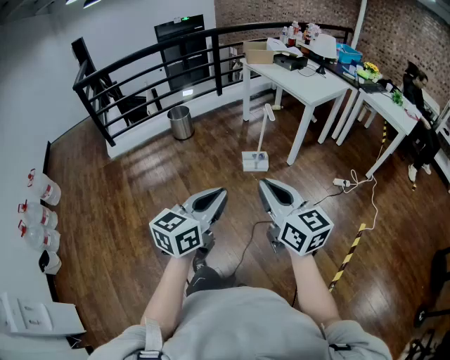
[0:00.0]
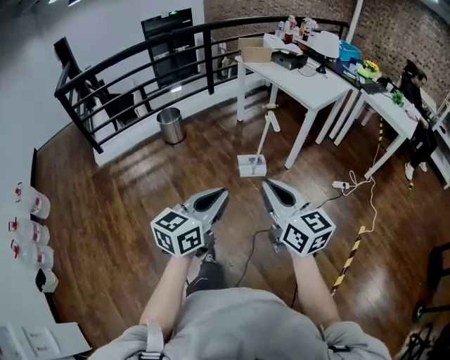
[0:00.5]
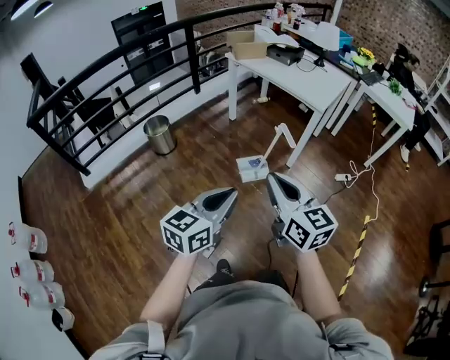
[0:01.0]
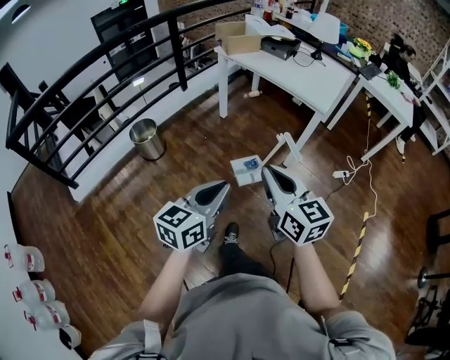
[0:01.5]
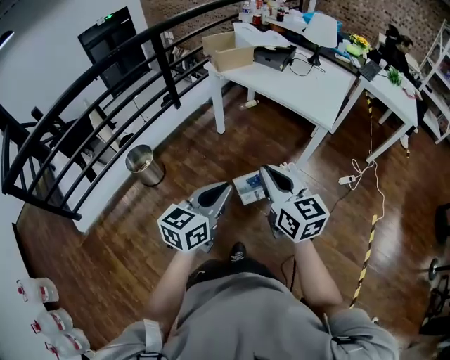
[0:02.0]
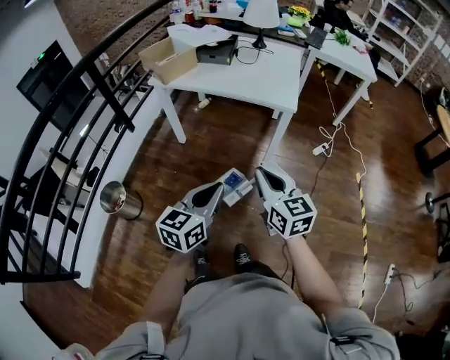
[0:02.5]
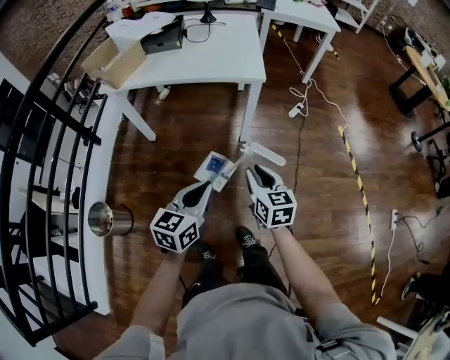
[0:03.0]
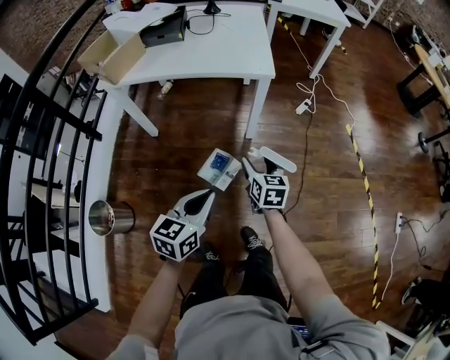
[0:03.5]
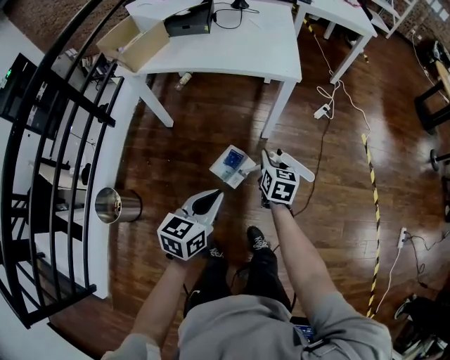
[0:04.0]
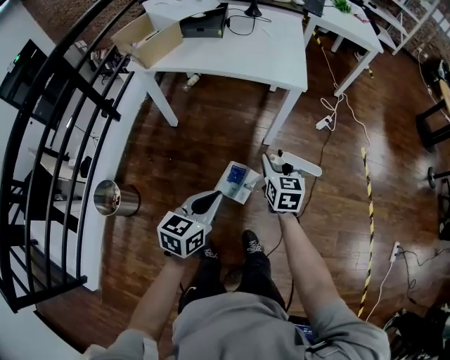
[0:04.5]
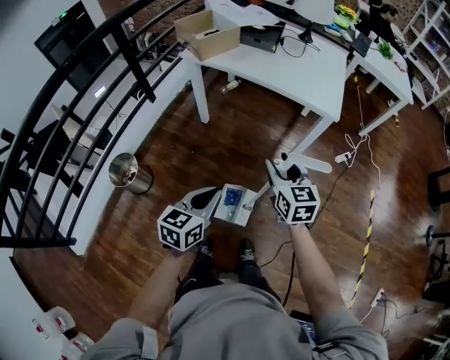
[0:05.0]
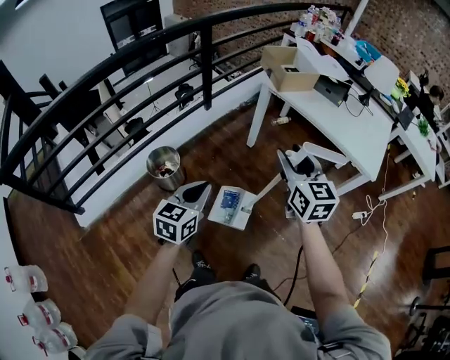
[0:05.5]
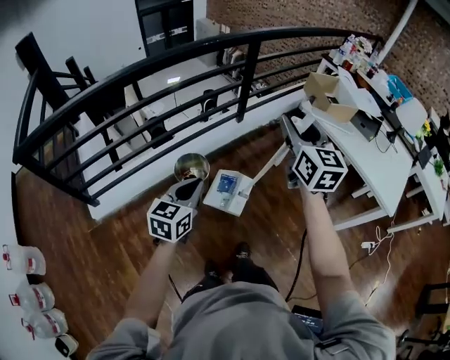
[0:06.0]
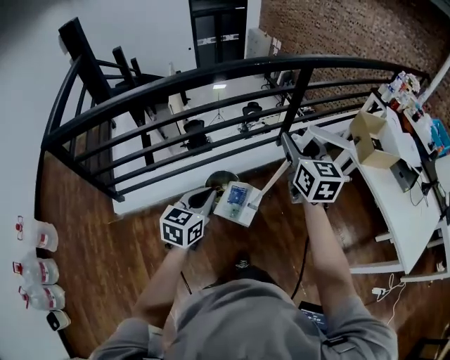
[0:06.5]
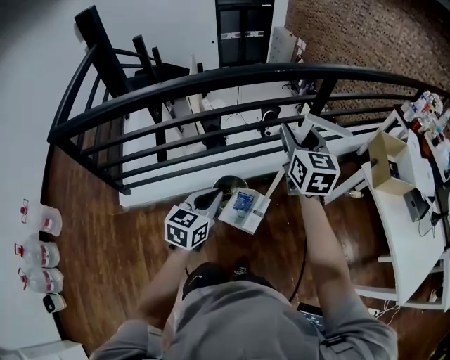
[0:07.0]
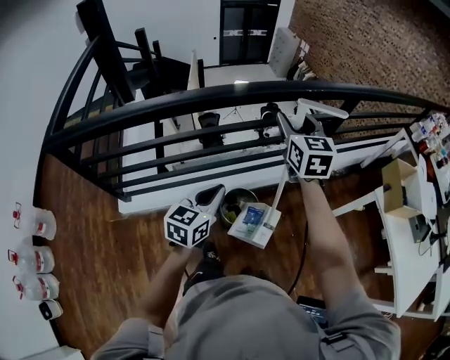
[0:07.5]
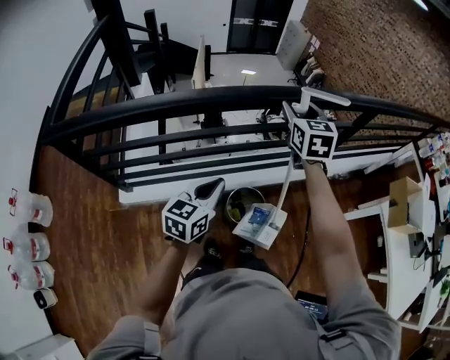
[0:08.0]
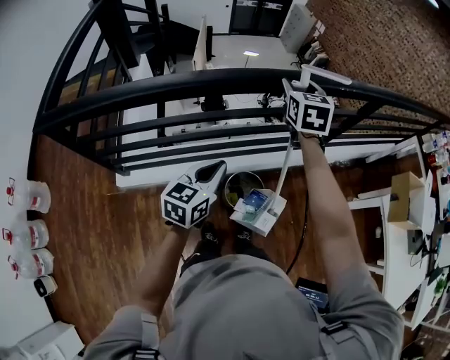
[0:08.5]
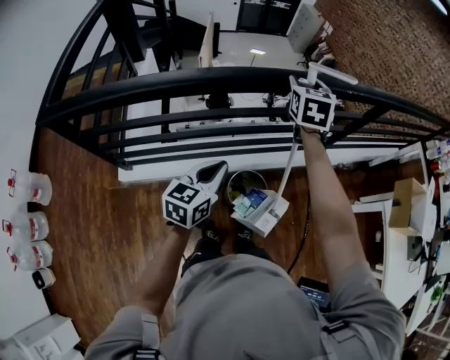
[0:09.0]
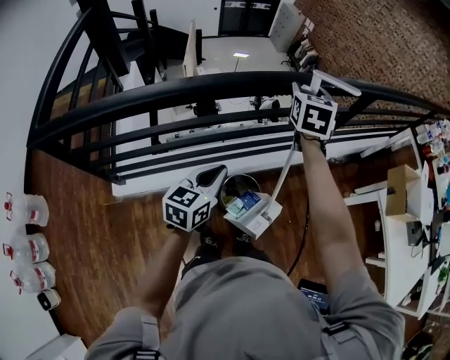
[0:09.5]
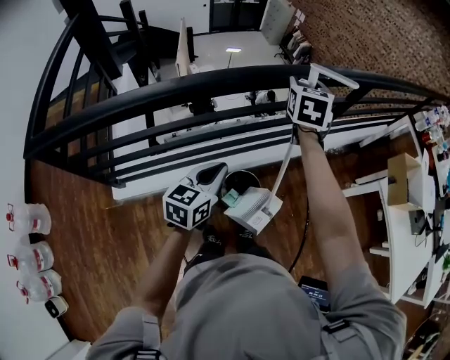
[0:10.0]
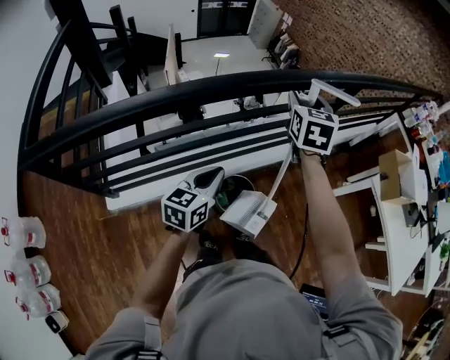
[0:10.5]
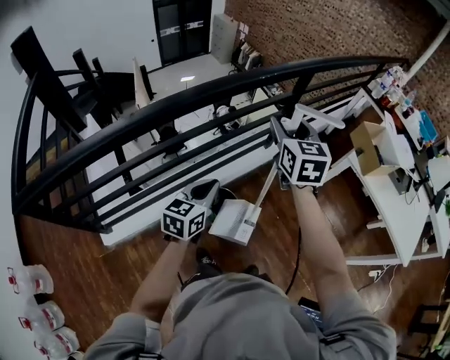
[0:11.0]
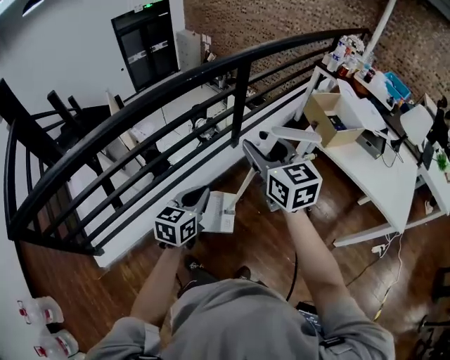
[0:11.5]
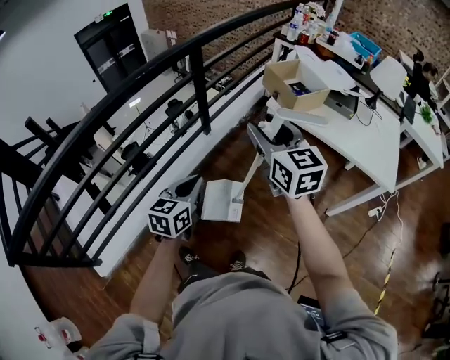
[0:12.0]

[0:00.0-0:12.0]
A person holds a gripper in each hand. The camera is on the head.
0:00.0 to 0:02.0: The pair of grippers is taken forward, roughly 60 cm. The right gripper changes its angle by about 30 degrees, while the left gripper rotates approximately 20 degrees.
0:02.0 to 0:04.0: The left gripper shifts roughly 15 cm downward, and changes its angle by roughly 30 degrees. The right gripper moves downward, approximately 30 cm, turns by about 60 degrees, and opens.
0:04.0 to 0:06.0: The pair of grippers is taken approximately 60 cm. The left gripper turns by approximately 50 degrees. Meanwhile the right gripper tilts its fingers about 30 degrees upward.
0:06.0 to 0:08.0: The left gripper travels to the left and forward by some 35 cm; the right gripper shifts some 60 cm to the left and forward, and changes its angle by about 30 degrees.
0:08.0 to 0:10.0: The left gripper changes place by roughly 5 cm, while the right gripper shifts about 10 cm forward and to the right, and rotates roughly 20 degrees.
0:10.0 to 0:12.0: The left gripper goes approximately 40 cm to the right, and rotates roughly 30 degrees. The right gripper goes about 50 cm to the right and backward, and changes its angle by approximately 20 degrees.

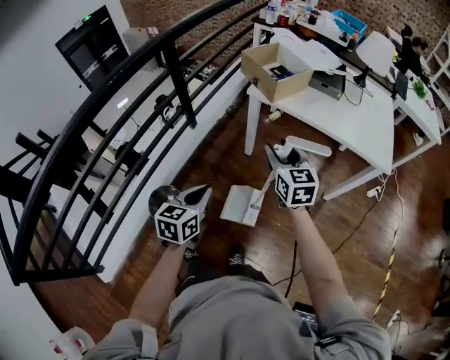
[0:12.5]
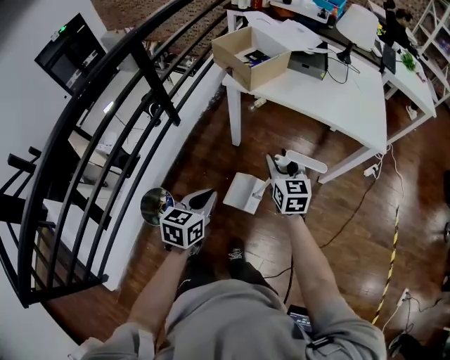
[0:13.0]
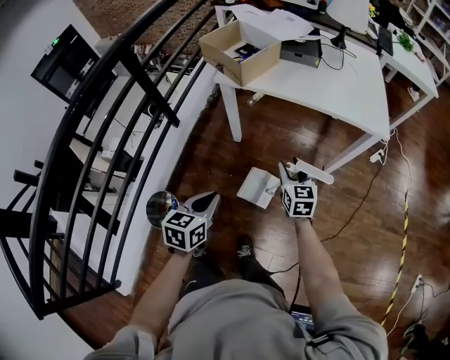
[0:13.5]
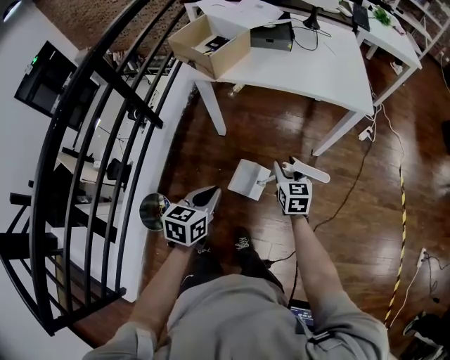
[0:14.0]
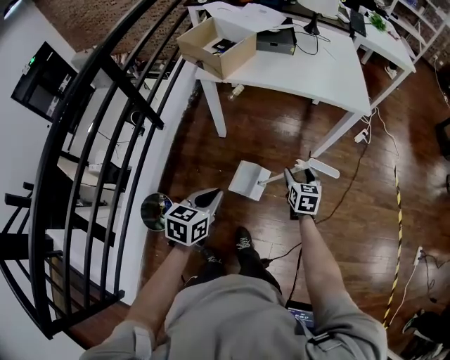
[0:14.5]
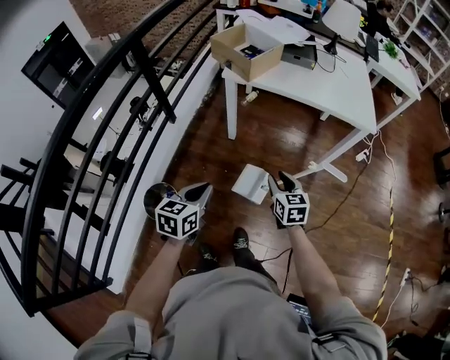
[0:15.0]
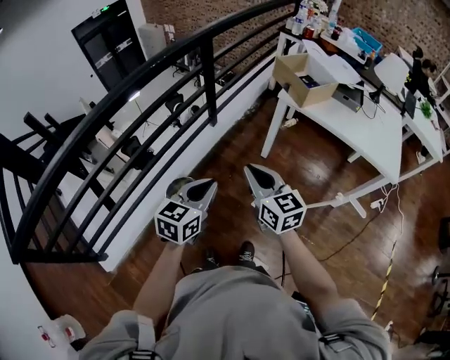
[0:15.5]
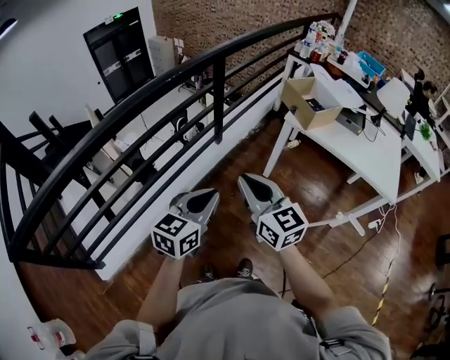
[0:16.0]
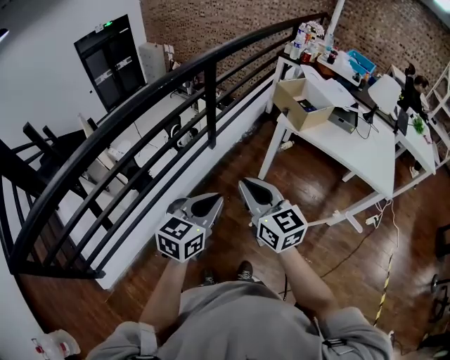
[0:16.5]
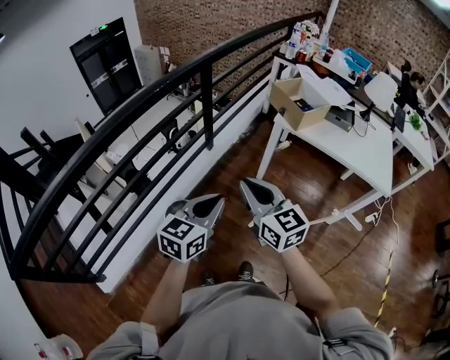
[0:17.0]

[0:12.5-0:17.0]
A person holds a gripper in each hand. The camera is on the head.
0:12.5 to 0:14.5: The left gripper changes place by roughly 15 cm, and changes its angle by some 20 degrees. Meanwhile the right gripper moves about 30 cm, and changes its angle by about 40 degrees.
0:14.5 to 0:17.0: The left gripper moves about 25 cm, and rotates approximately 30 degrees, while the right gripper moves about 50 cm, rotates approximately 60 degrees, and closes its fingers.

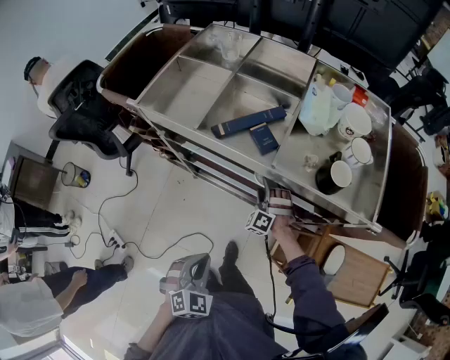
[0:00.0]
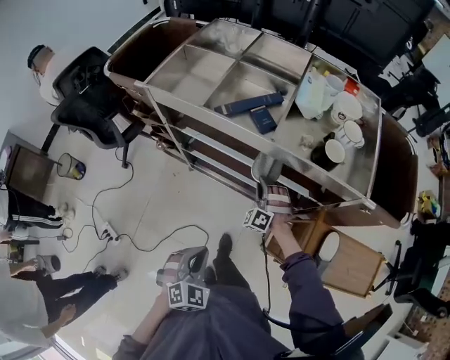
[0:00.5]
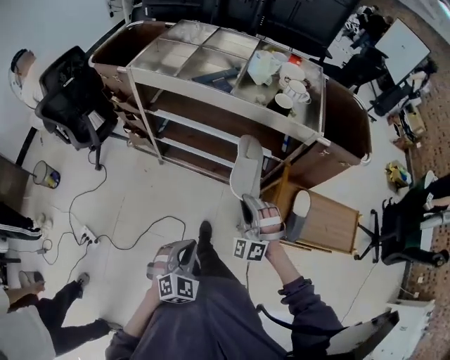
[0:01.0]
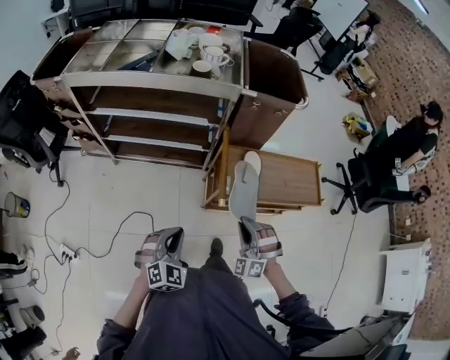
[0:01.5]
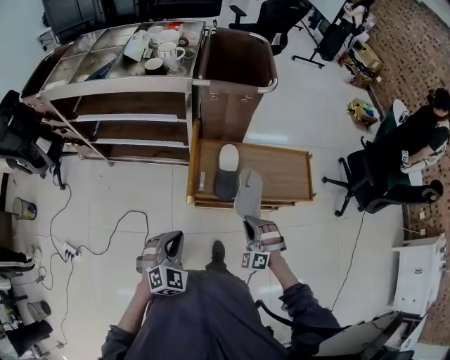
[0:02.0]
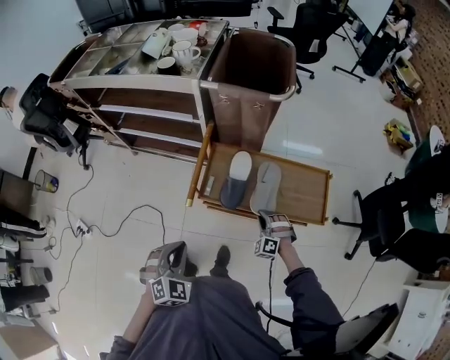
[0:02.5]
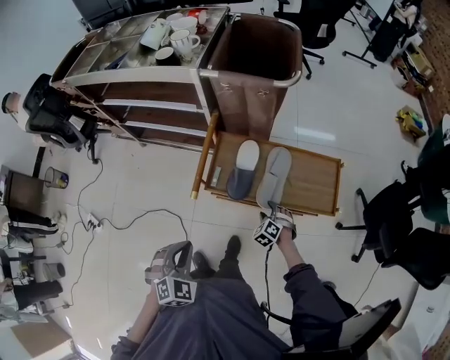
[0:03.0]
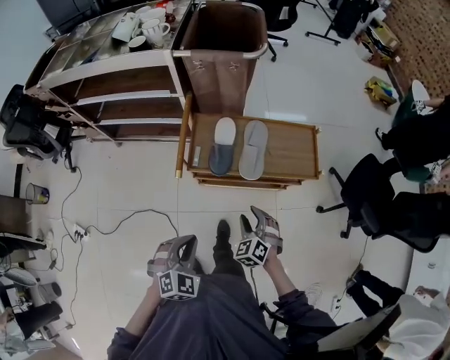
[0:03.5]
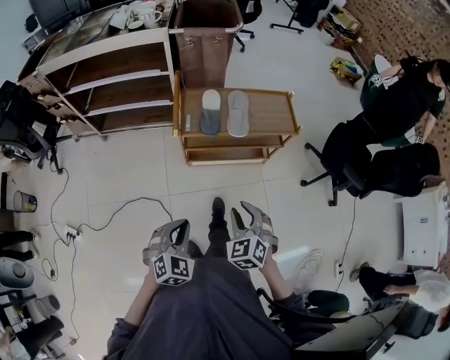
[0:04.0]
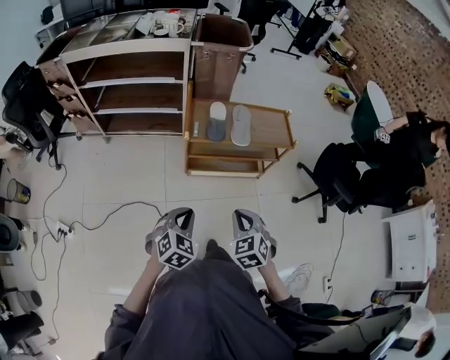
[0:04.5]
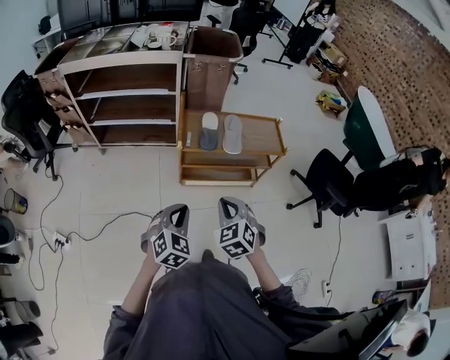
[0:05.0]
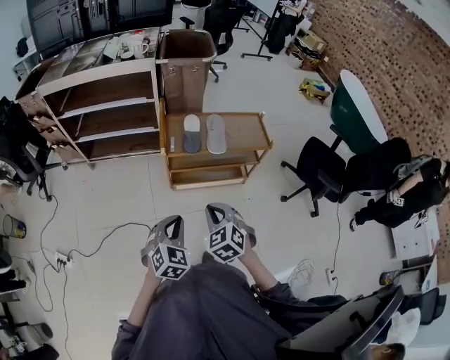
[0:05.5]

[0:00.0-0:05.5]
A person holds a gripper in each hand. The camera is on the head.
0:00.0 to 0:02.0: The two grippers travel together, to the right and backward, roughly 60 cm. The left gripper turns by approximately 30 degrees. Meanwhile the right gripper closes its fingers.
0:02.0 to 0:03.5: The right gripper is displaced to the right and backward by about 10 cm, reaches approximately 20 cm downward, then returns, rotates approximately 30 degrees, and opens, while the left gripper moves to the right and backward, approximately 15 cm.
0:03.5 to 0:05.5: The right gripper heads backward and upward, covering about 30 cm, and closes up; the left gripper travels backward by some 15 cm.

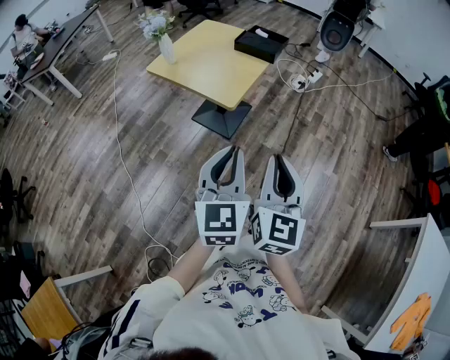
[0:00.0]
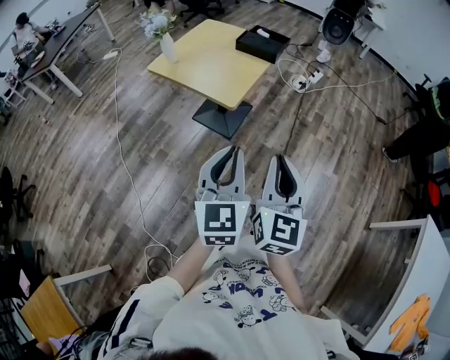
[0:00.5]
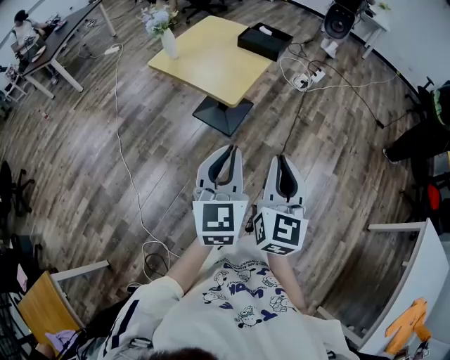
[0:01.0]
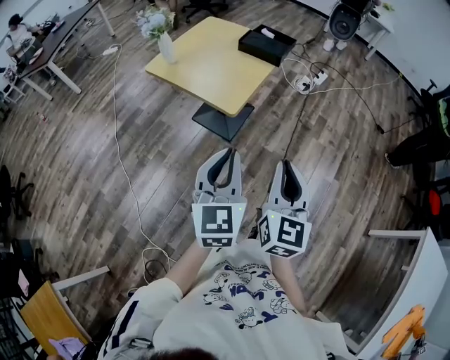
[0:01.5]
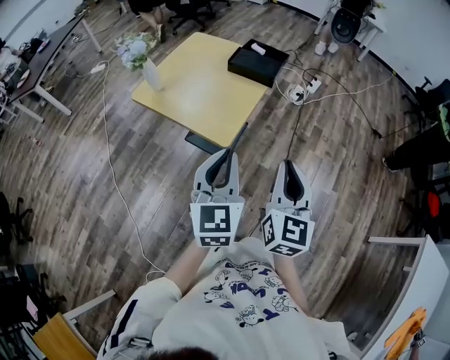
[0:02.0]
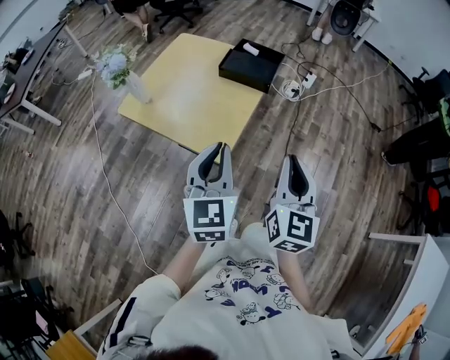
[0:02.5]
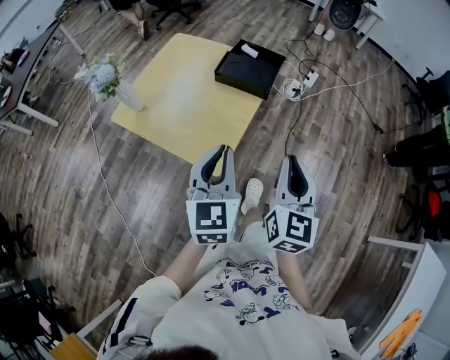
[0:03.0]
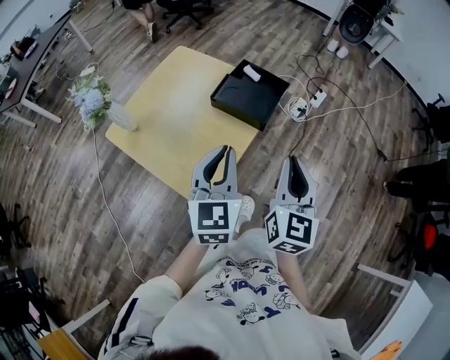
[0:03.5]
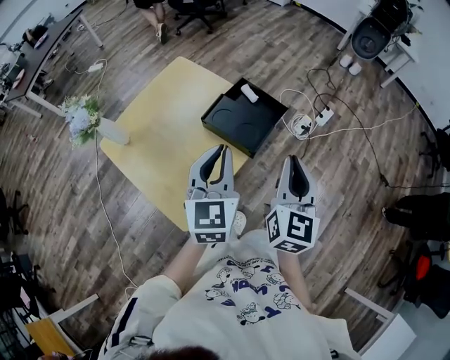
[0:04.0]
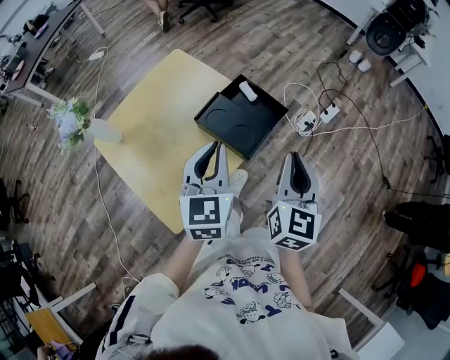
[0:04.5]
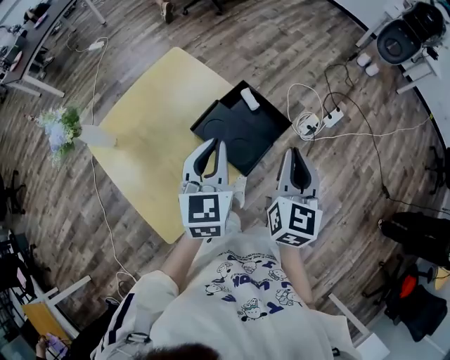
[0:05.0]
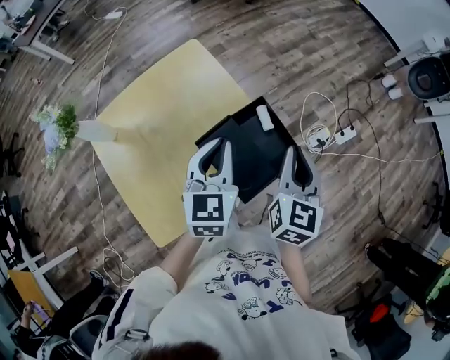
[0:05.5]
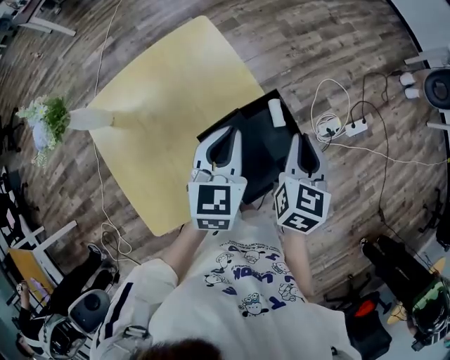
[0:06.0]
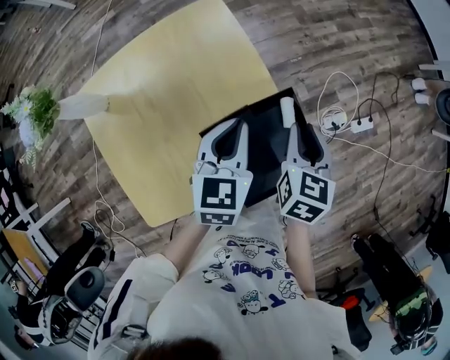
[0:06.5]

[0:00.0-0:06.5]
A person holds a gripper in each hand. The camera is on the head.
0:00.0 to 0:02.0: Both grippers travel together forward, some 20 cm.
0:02.0 to 0:04.5: Both grippers are carried forward, roughly 40 cm.
0:04.5 to 0:06.5: The grippers both shift forward and downward by approximately 25 cm. The right gripper swivels roughly 40 degrees, and opens up, while the left gripper turns by some 20 degrees.
